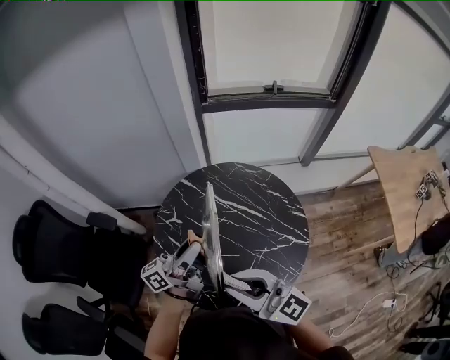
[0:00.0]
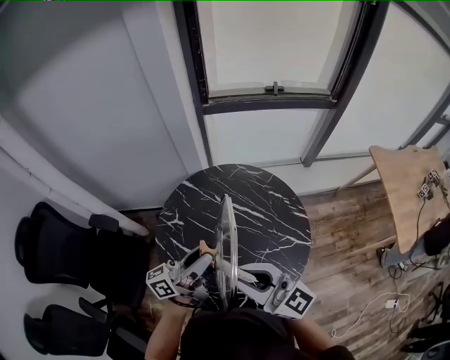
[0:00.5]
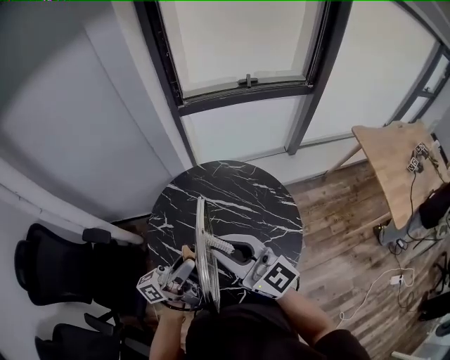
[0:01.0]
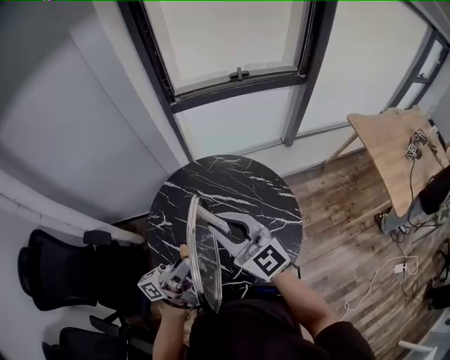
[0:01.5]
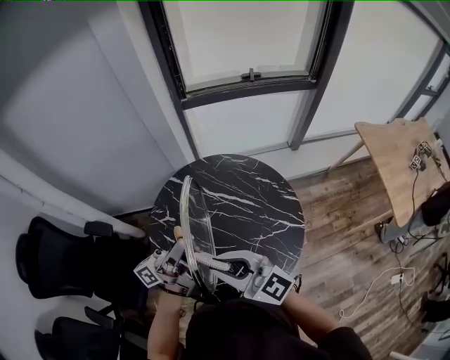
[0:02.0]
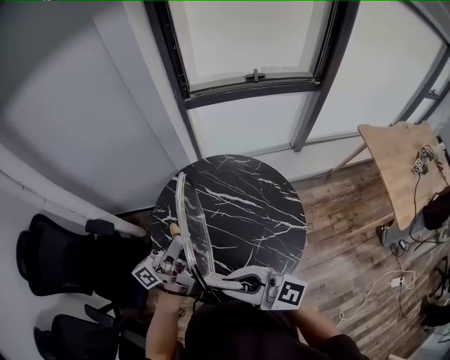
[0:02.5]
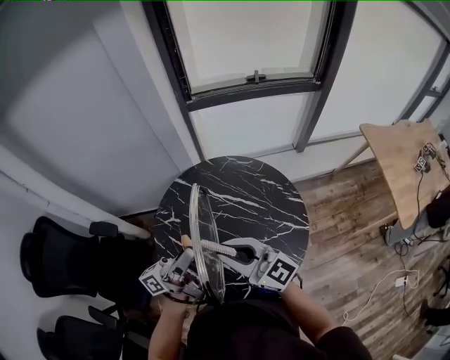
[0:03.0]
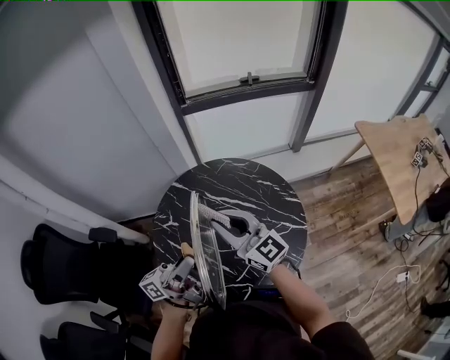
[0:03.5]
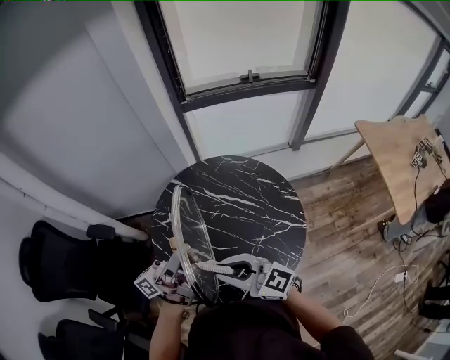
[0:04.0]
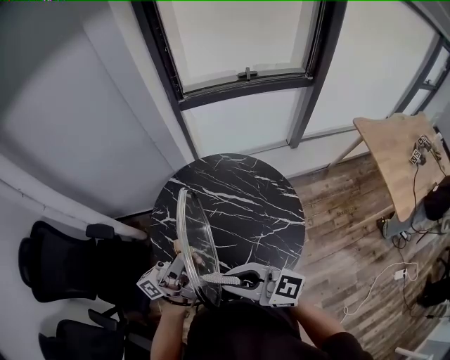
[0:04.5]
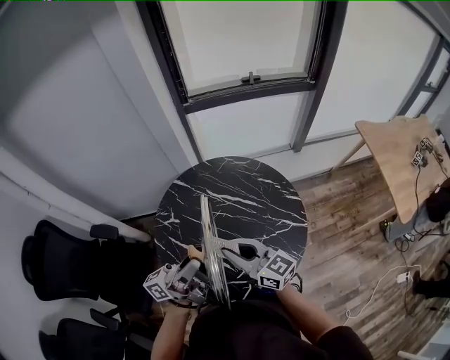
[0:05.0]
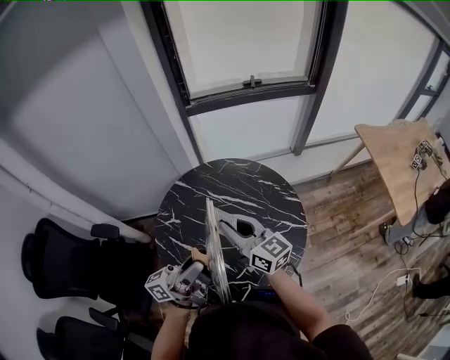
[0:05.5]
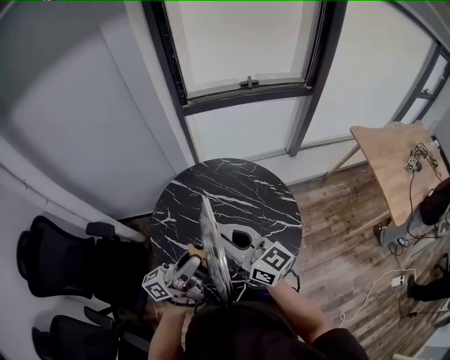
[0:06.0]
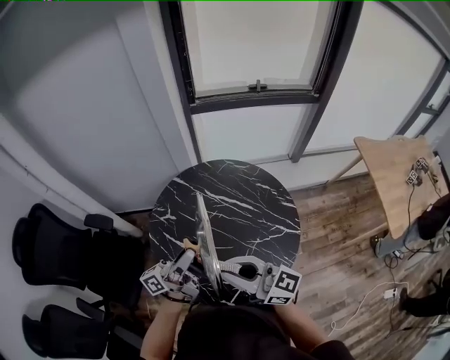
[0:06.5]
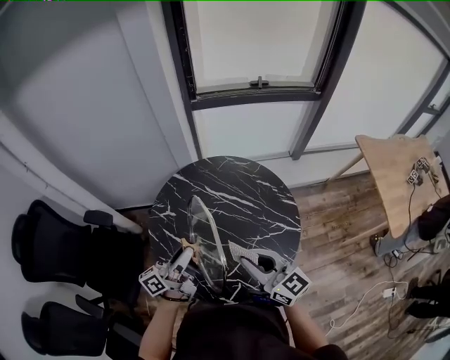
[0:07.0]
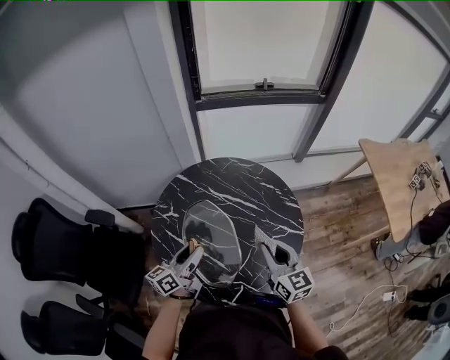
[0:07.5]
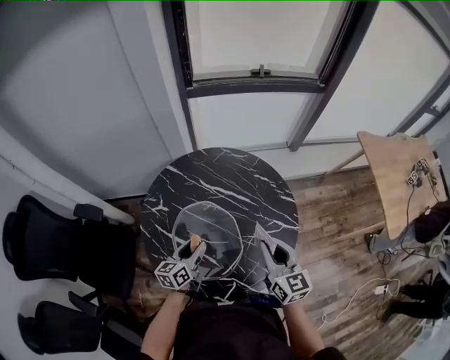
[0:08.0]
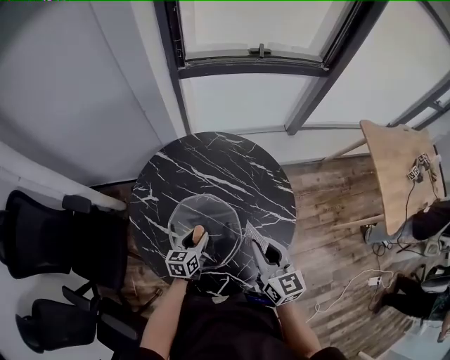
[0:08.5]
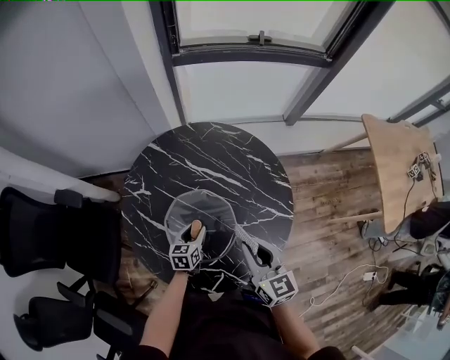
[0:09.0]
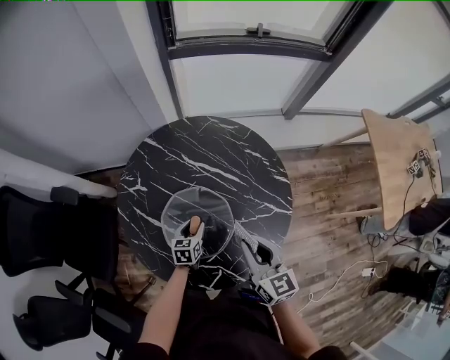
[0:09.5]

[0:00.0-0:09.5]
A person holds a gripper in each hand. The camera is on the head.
0:00.0 to 0:02.0: The right gripper moves some 10 cm forward and comes back.
0:02.0 to 0:04.0: The right gripper swings forward and backward, some 20 cm each way, with 2 reversals.
0:04.0 to 0:05.5: The right gripper goes roughly 10 cm forward, and turns by some 30 degrees. Meanwhile the left gripper shifts approximately 5 cm backward.
0:05.5 to 0:07.5: The left gripper travels downward by roughly 15 cm, and points its fingers about 30 degrees further downward; the right gripper is displaced to the right, backward and downward by about 15 cm, and turns by some 20 degrees.
0:07.5 to 0:09.5: The right gripper heads downward, covering about 5 cm. Meanwhile the left gripper shifts about 25 cm downward, and tilts its fingers about 40 degrees downward.

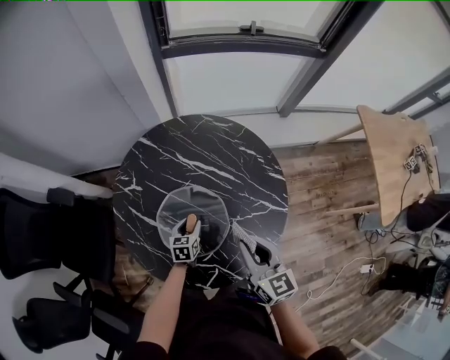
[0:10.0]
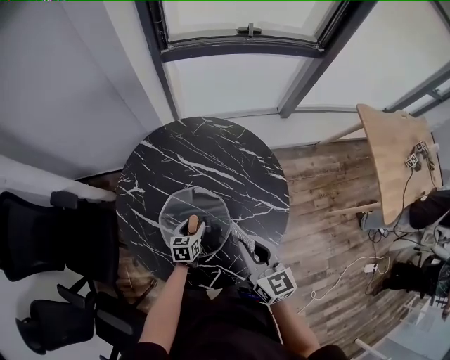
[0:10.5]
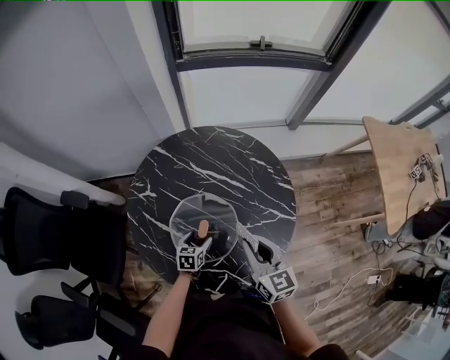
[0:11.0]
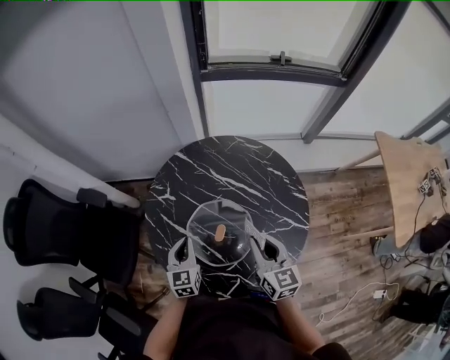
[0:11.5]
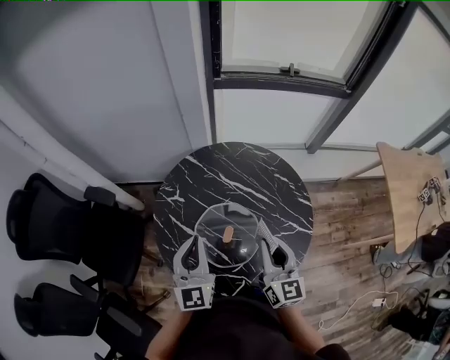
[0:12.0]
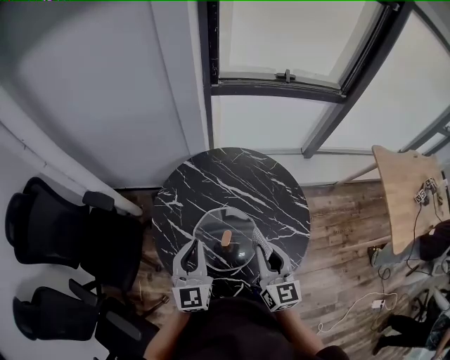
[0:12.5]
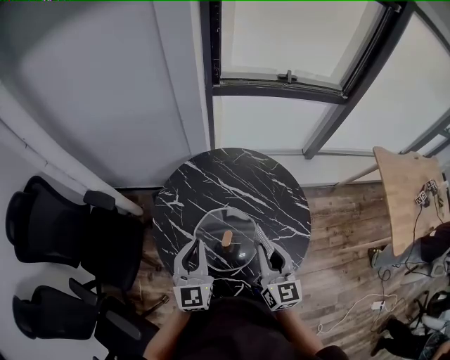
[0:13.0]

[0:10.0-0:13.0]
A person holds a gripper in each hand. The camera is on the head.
0:10.0 to 0:11.5: The right gripper is displaced to the left by roughly 5 cm, while the left gripper moves upward and to the left, some 20 cm, changes its angle by roughly 30 degrees, and closes.
0:11.5 to 0:13.0: The left gripper moves upward, about 15 cm, and changes its angle by some 20 degrees; the right gripper moves roughly 5 cm.

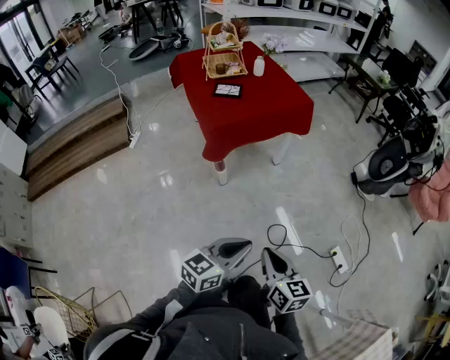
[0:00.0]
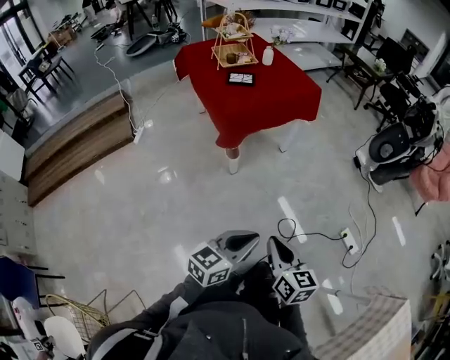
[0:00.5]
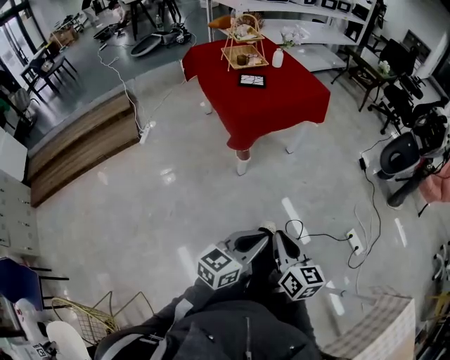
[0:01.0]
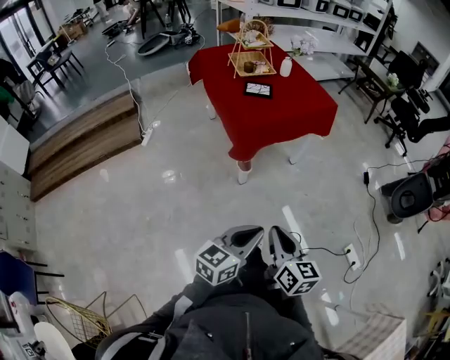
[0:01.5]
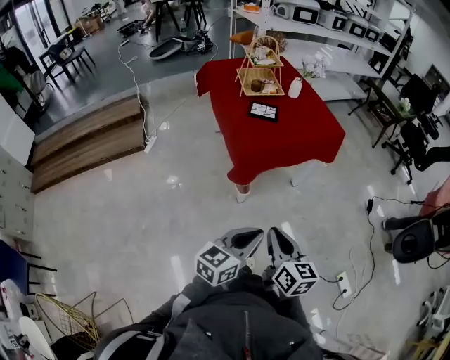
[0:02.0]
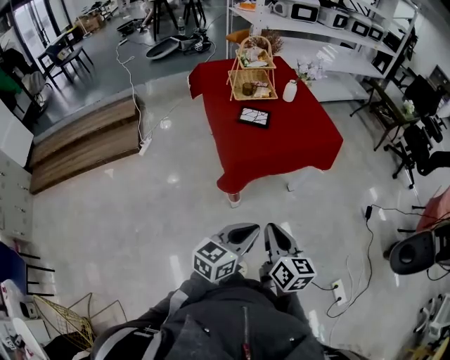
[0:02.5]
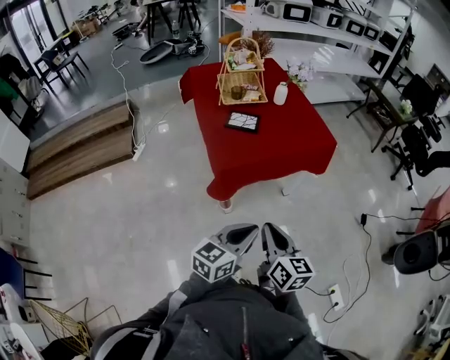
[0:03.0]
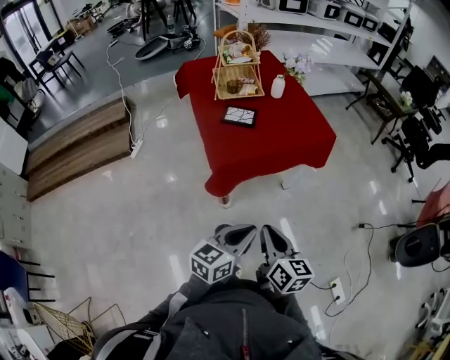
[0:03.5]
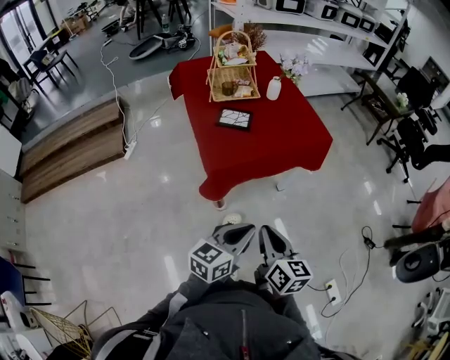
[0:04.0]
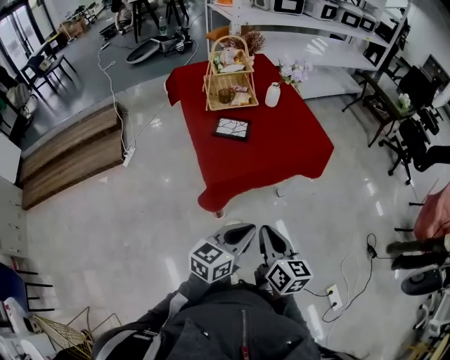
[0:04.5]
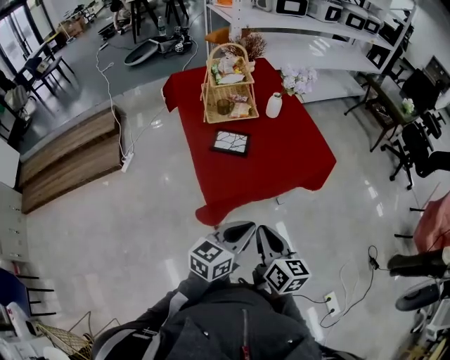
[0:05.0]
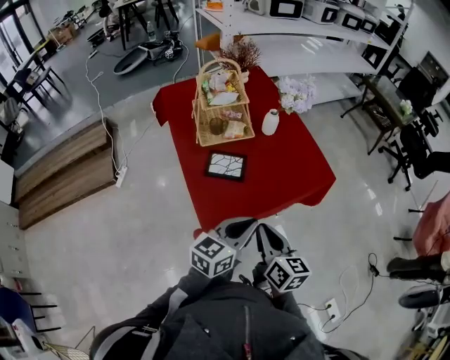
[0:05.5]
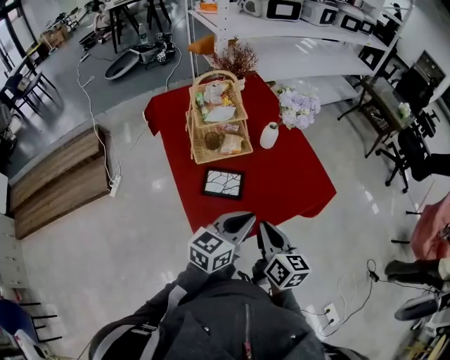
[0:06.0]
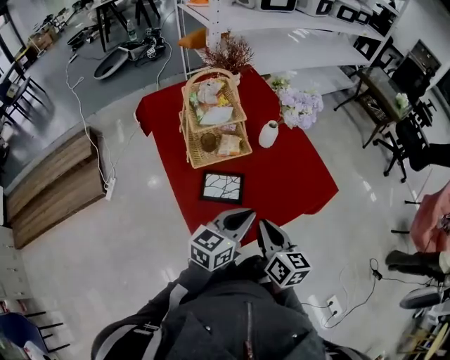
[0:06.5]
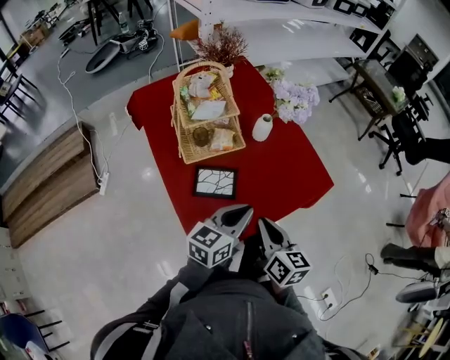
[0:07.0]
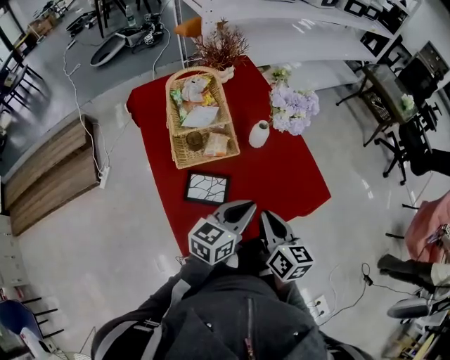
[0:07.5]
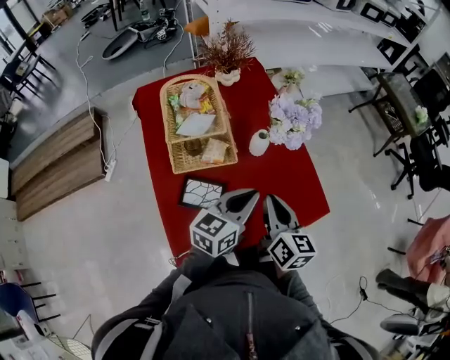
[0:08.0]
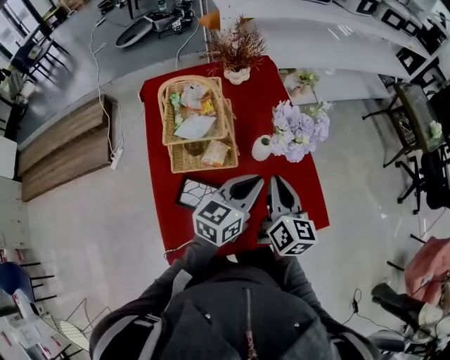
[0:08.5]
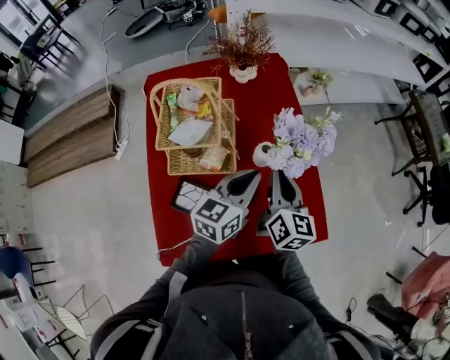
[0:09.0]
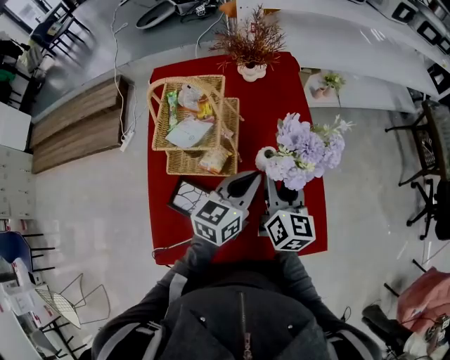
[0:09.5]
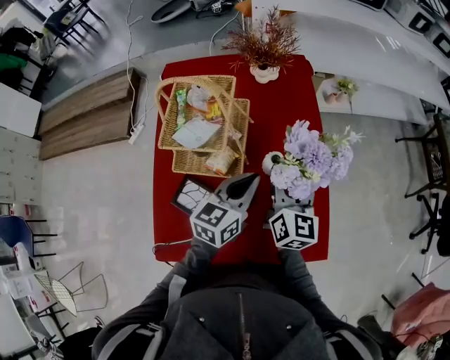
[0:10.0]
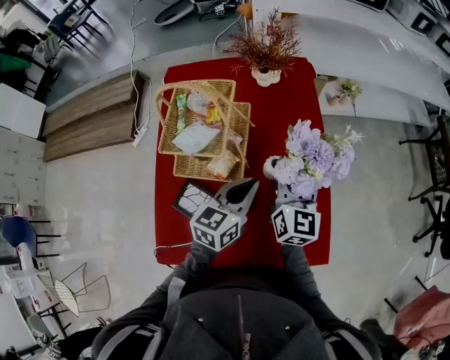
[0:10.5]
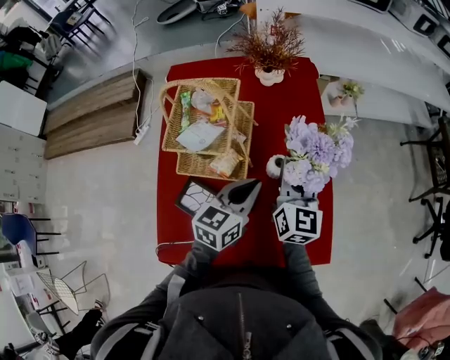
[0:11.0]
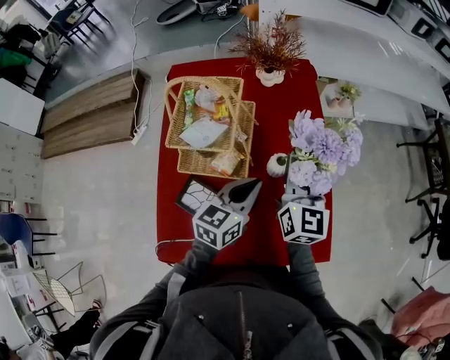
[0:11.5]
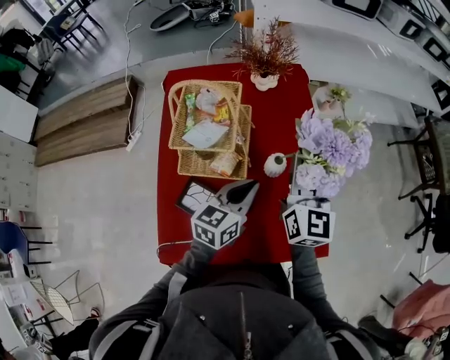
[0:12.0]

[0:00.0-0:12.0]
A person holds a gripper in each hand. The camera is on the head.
0:00.0 to 0:02.0: The grippers both shift to the left and forward by about 20 cm.
0:02.0 to 0:04.0: The left gripper travels forward by some 15 cm. Meanwhile the right gripper is displaced forward and to the right by approximately 15 cm.
0:04.0 to 0:06.0: Both grippers move forward, about 35 cm.
0:06.0 to 0:08.0: Both grippers travel together forward, about 15 cm.
0:08.0 to 0:10.0: The grippers both shift forward by some 15 cm. The left gripper changes its angle by roughly 20 degrees. Meanwhile the right gripper opens.
0:10.0 to 0:12.0: The right gripper goes approximately 10 cm upward, and closes.

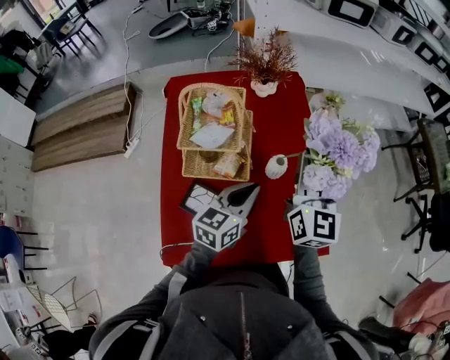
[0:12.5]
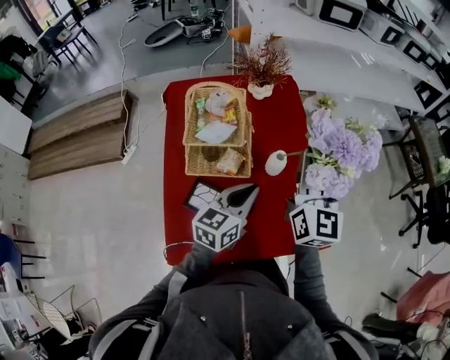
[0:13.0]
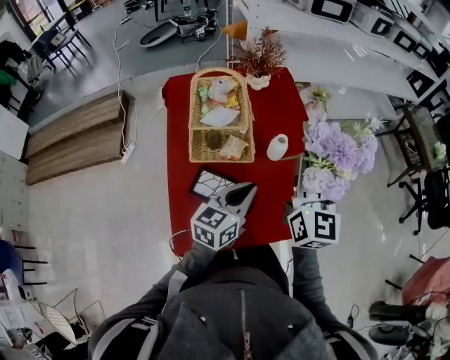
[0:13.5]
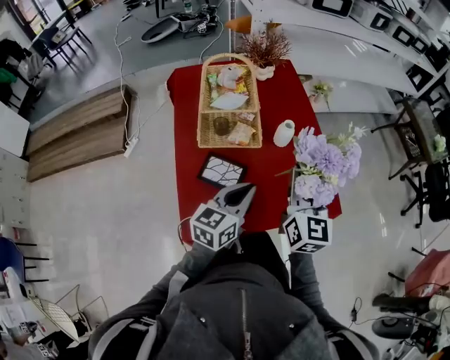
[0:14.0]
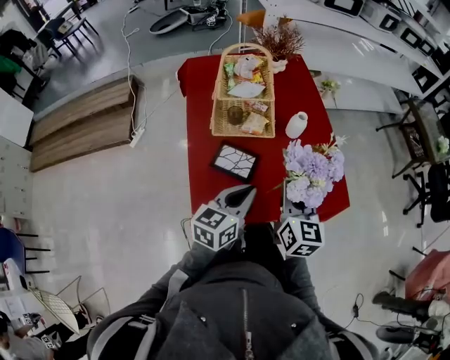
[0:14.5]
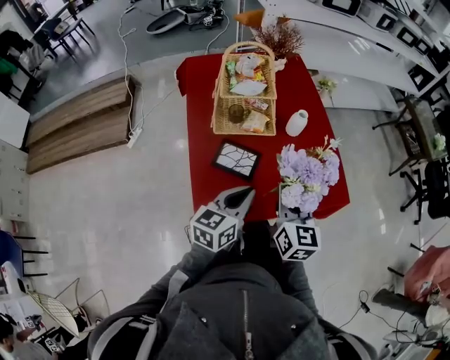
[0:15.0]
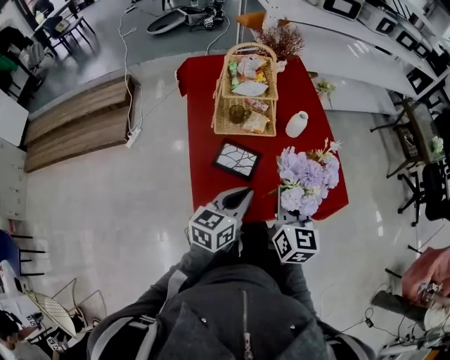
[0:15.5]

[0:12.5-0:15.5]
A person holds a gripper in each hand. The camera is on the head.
0:12.5 to 0:14.0: Both grippers travel together backward, some 15 cm.
0:14.0 to 0:15.5: The right gripper shifts approximately 10 cm backward, downward and to the left. Meanwhile the left gripper is displaced backward by roughly 5 cm.
